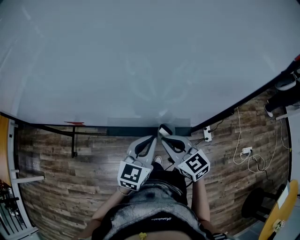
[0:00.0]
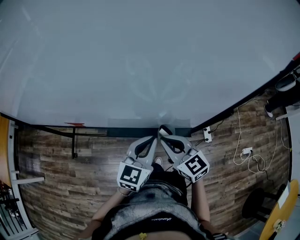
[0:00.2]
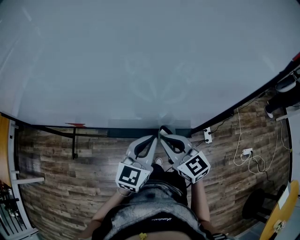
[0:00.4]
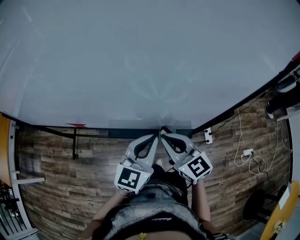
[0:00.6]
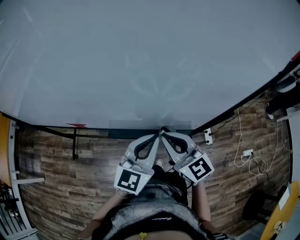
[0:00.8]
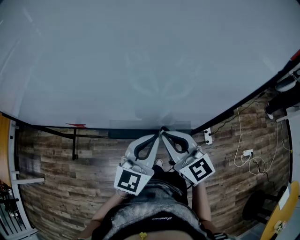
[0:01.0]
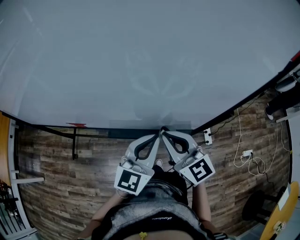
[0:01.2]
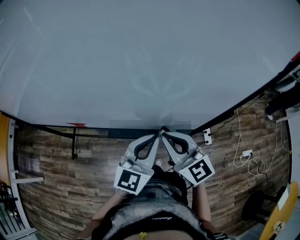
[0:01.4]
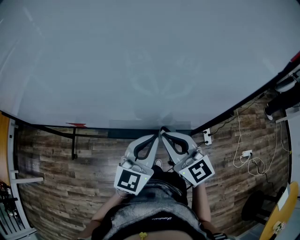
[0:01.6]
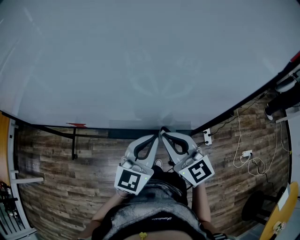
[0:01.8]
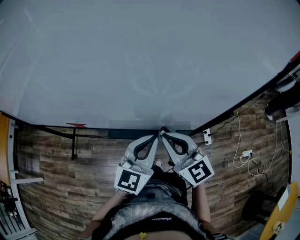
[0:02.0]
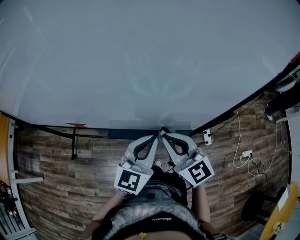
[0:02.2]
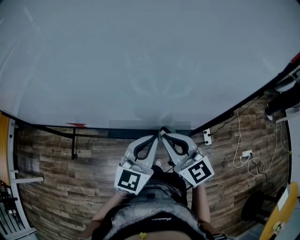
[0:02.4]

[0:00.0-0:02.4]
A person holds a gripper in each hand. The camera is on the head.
0:00.0 to 0:01.2: Both grippers travel together upward, roughly 10 cm.
0:01.2 to 0:02.4: Neither gripper changes place.

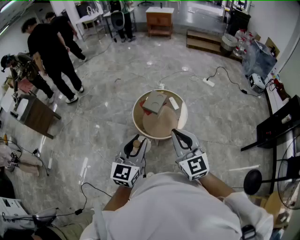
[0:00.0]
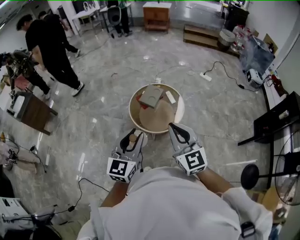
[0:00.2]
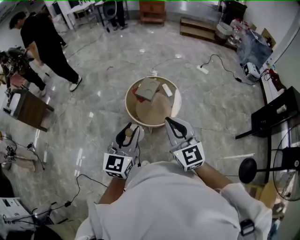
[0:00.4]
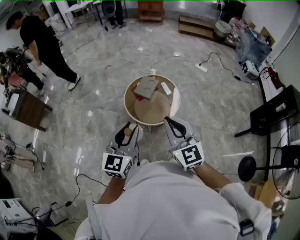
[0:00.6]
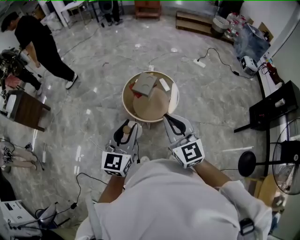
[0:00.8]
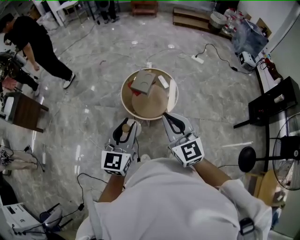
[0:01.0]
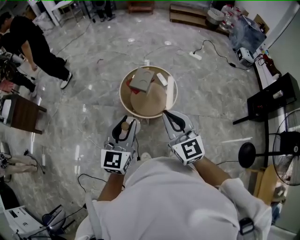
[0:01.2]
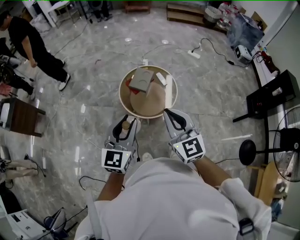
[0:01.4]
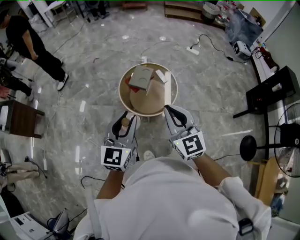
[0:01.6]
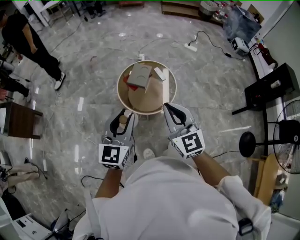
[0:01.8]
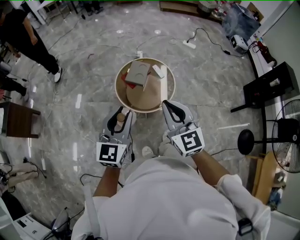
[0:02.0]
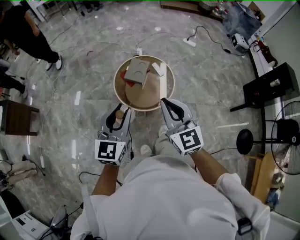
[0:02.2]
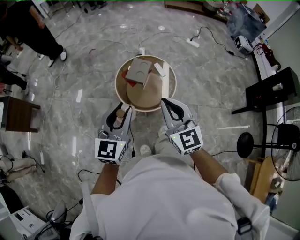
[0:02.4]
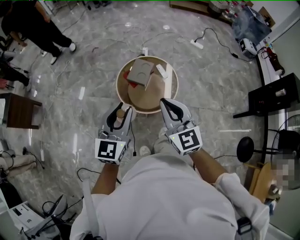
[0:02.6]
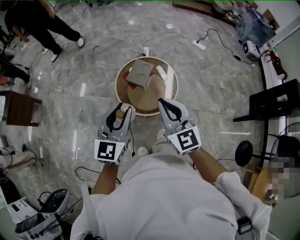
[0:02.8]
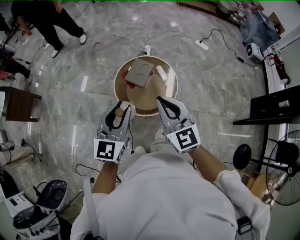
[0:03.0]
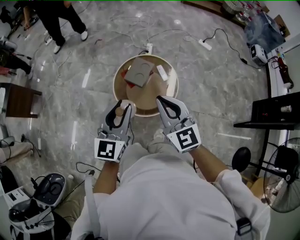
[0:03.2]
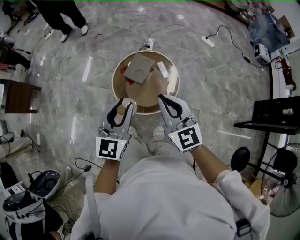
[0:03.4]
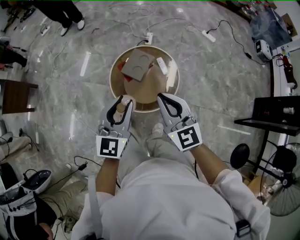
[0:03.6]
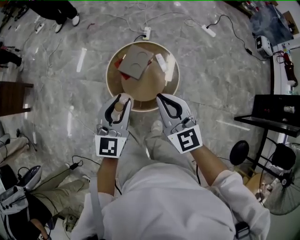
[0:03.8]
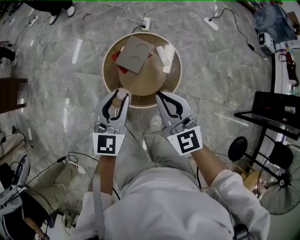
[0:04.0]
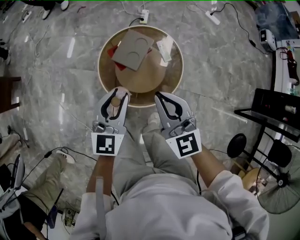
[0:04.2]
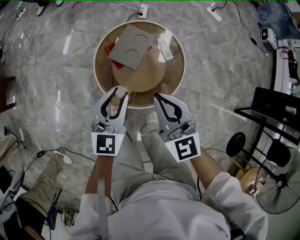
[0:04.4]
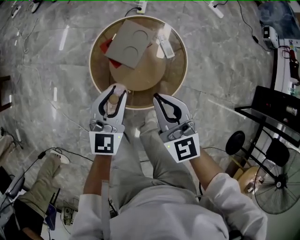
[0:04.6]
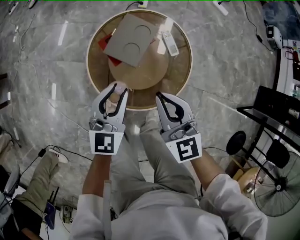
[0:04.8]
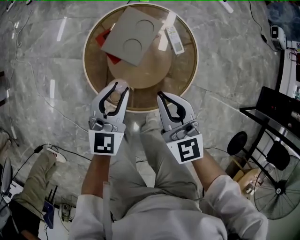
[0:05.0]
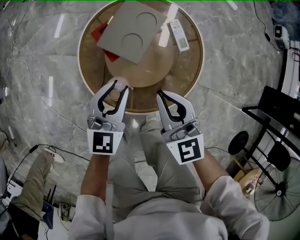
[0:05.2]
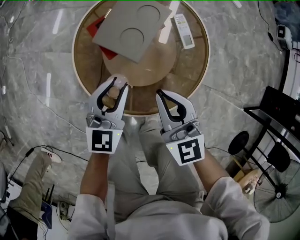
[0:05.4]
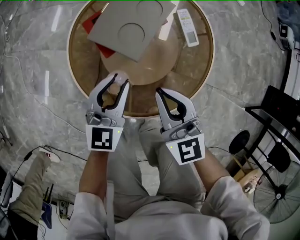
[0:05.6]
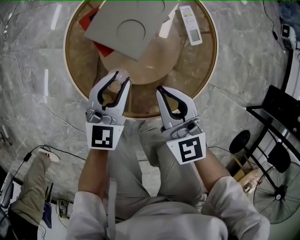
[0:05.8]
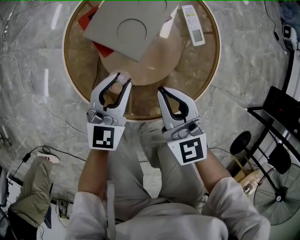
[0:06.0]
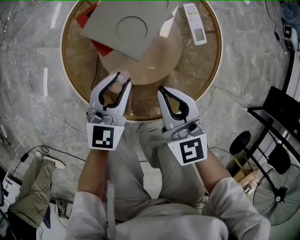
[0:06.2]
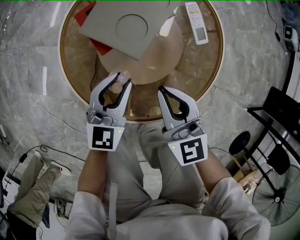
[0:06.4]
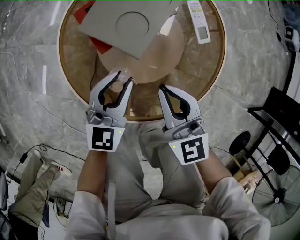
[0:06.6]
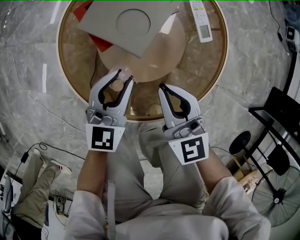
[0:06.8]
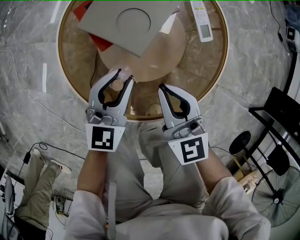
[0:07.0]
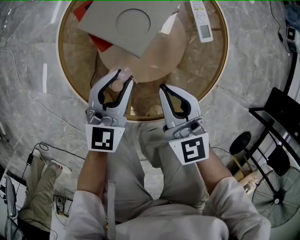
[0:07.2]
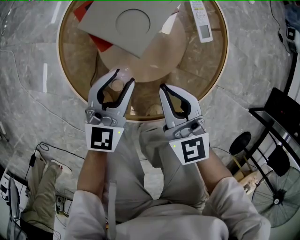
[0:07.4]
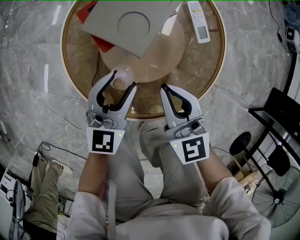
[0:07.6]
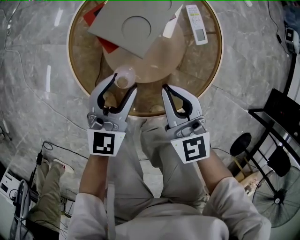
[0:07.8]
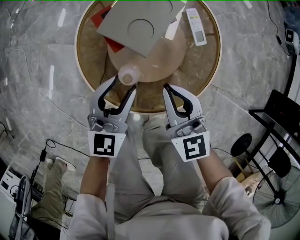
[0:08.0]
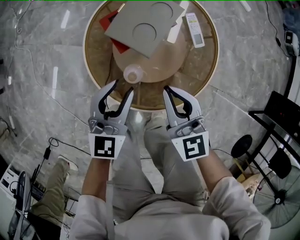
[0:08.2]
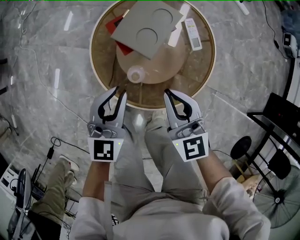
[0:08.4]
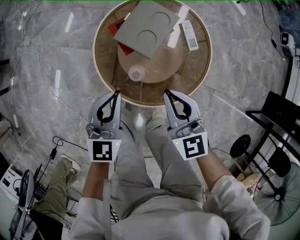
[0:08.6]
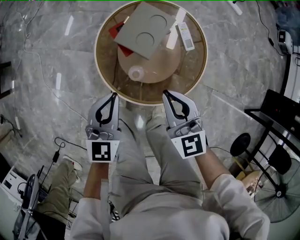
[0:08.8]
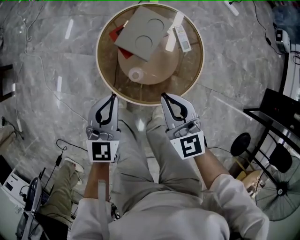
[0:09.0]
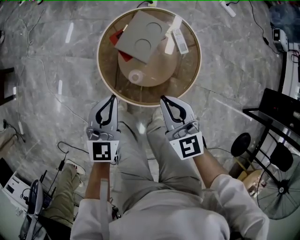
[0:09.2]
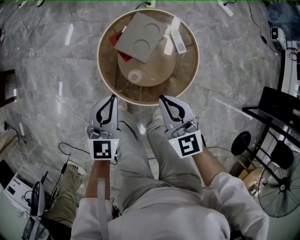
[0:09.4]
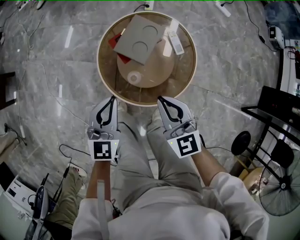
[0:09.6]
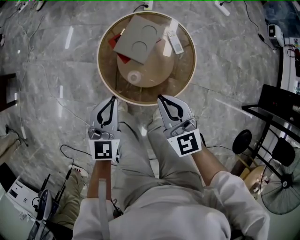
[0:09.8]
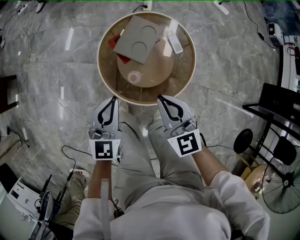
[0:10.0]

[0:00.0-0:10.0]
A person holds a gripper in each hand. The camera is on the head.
0:00.0 to 0:01.4: The left gripper shifts roughly 5 cm forward; the right gripper ends up approximately 5 cm from where it was.
0:01.4 to 0:02.8: The grippers both shift forward by roughly 15 cm.
0:02.8 to 0:04.2: Both grippers move downward and forward, some 30 cm.
0:04.2 to 0:05.8: Both grippers move downward, roughly 35 cm.
0:05.8 to 0:07.2: The grippers make only small movements.
0:07.2 to 0:08.6: The grippers both shift upward by about 20 cm. The left gripper closes up.
0:08.6 to 0:10.0: Both grippers travel together upward, approximately 10 cm.

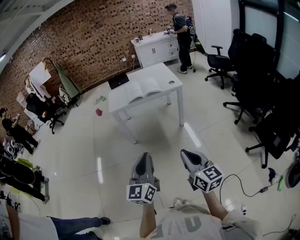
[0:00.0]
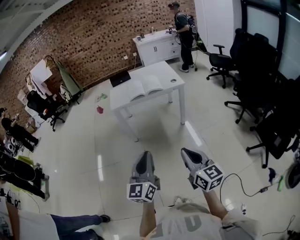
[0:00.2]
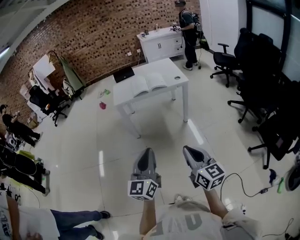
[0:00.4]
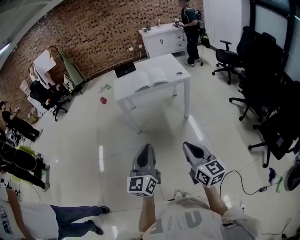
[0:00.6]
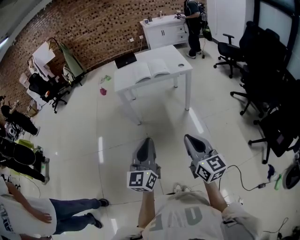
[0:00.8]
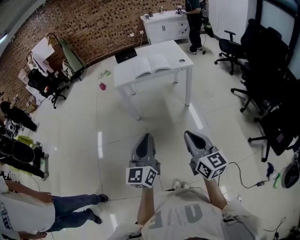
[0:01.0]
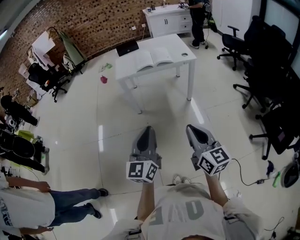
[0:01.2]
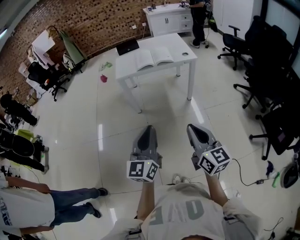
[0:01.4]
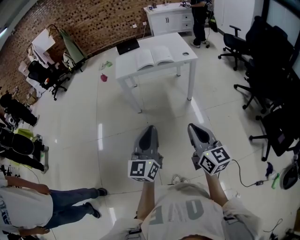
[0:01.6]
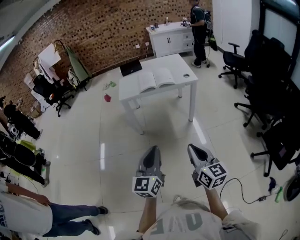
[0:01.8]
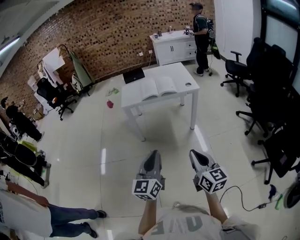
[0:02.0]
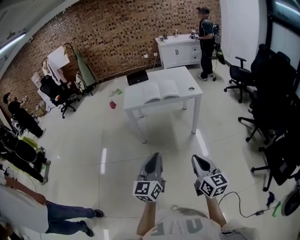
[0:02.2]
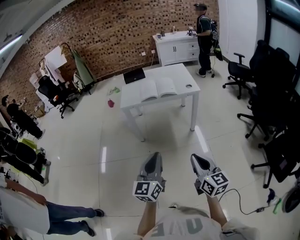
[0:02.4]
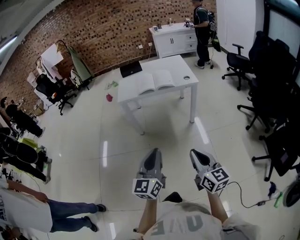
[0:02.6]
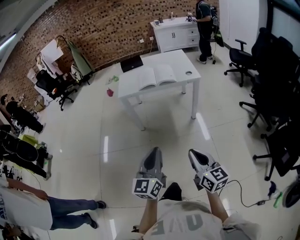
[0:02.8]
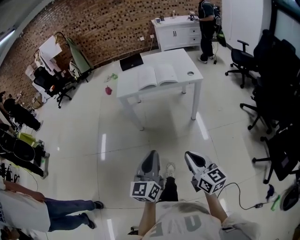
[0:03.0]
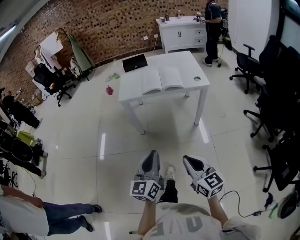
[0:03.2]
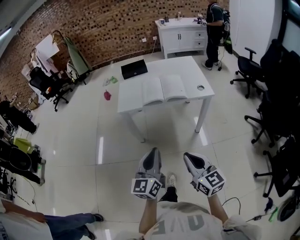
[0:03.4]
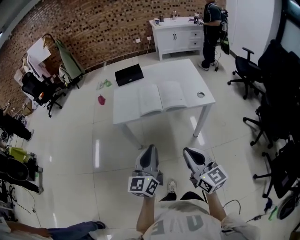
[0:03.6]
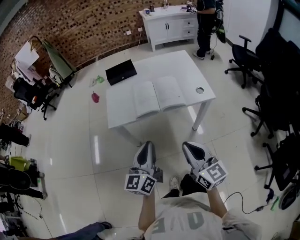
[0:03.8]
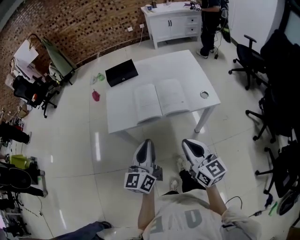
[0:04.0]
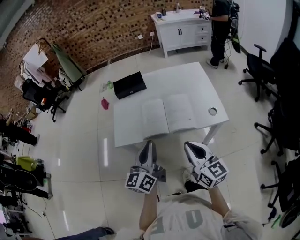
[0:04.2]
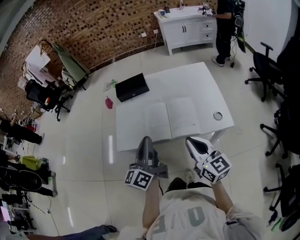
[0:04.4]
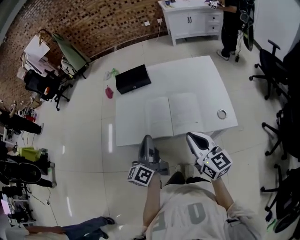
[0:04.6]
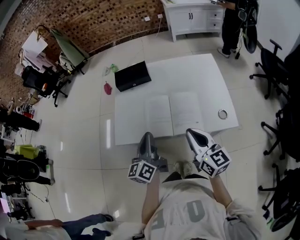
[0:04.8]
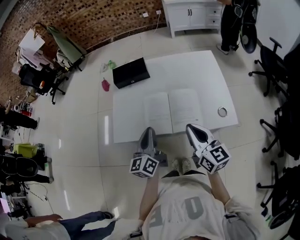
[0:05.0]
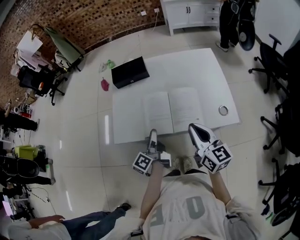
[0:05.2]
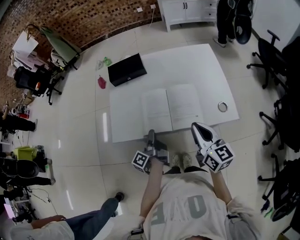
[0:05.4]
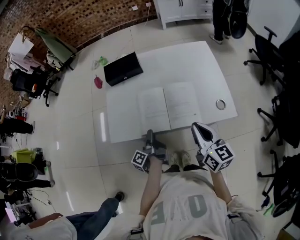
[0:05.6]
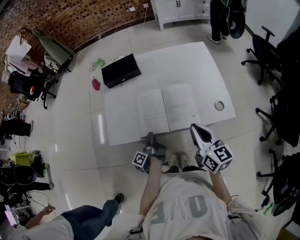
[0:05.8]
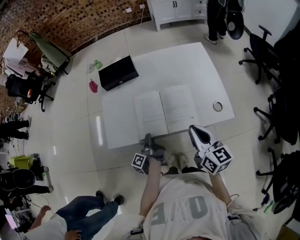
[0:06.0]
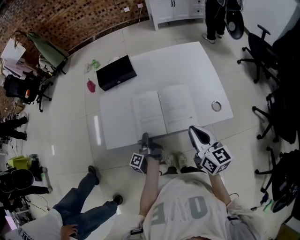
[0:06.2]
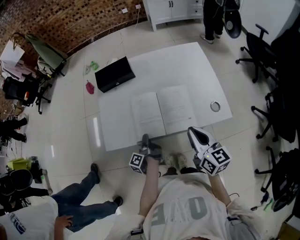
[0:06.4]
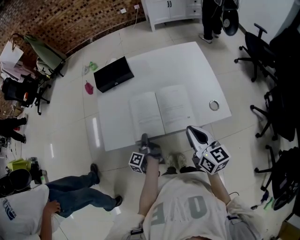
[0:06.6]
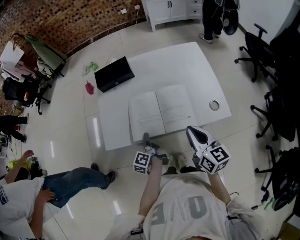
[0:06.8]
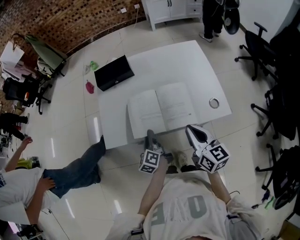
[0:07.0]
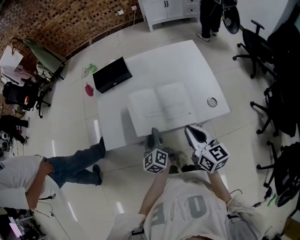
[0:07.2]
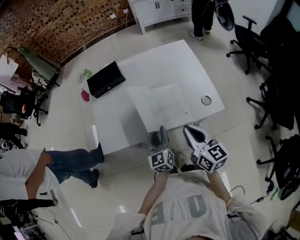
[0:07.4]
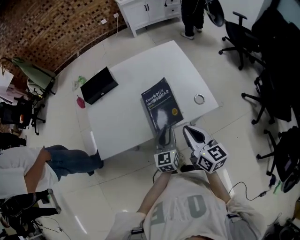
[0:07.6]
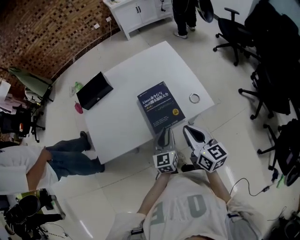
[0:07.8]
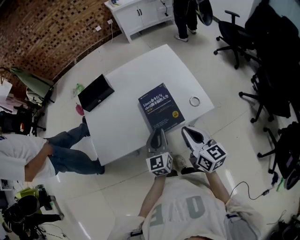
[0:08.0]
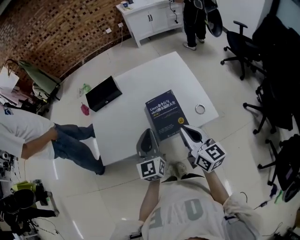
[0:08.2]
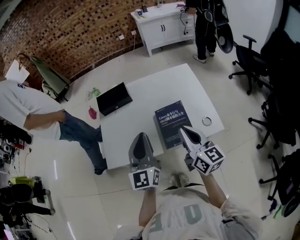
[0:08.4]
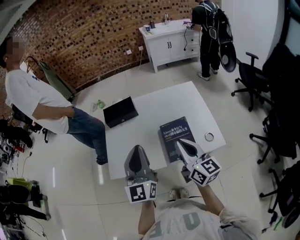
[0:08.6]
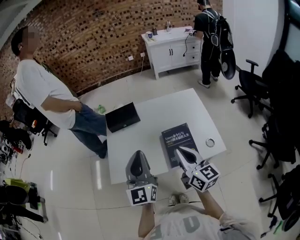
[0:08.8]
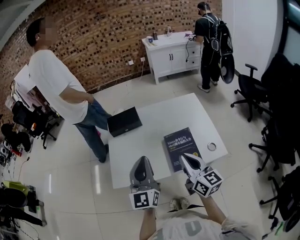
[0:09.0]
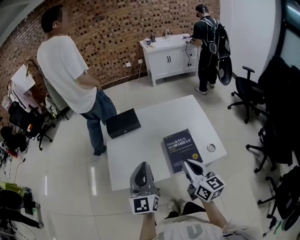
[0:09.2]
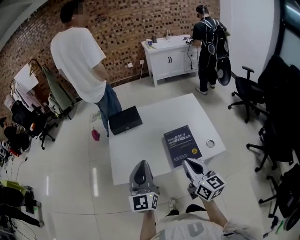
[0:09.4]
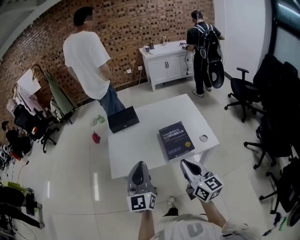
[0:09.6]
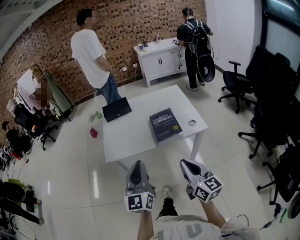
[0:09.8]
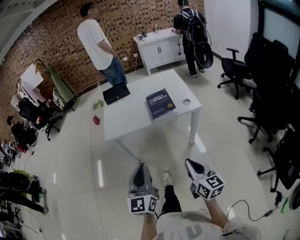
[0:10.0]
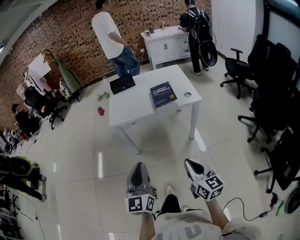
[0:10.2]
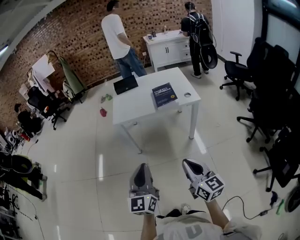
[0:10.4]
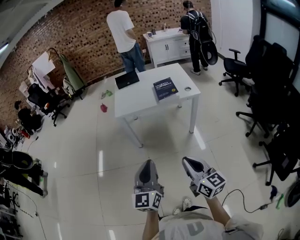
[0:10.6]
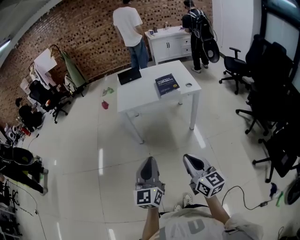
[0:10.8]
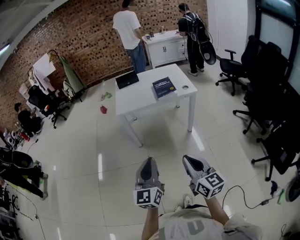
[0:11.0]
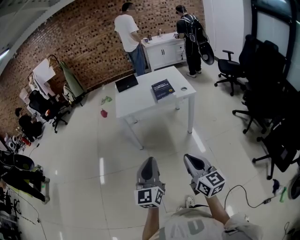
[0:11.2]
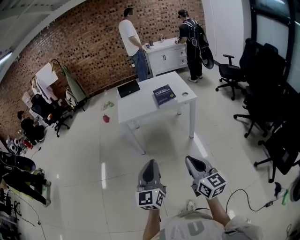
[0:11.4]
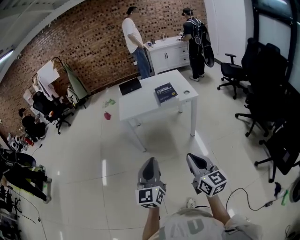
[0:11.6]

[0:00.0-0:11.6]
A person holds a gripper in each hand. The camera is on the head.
0:00.0 to 0:01.4: The grippers make only small movements.
0:01.4 to 0:02.8: The right gripper heads downward and to the right, covering approximately 10 cm, while the left gripper travels to the right by about 5 cm.
0:02.8 to 0:04.4: Both grippers are carried forward, about 60 cm. The left gripper changes its angle by about 30 degrees.
0:04.4 to 0:05.8: The right gripper heads forward, covering approximately 5 cm. Meanwhile the left gripper is displaced downward by roughly 30 cm, twists roughly 60 degrees counterclockwise, seen from behind, and opens up.
0:05.8 to 0:07.2: The left gripper shifts about 10 cm upward, twists about 60 degrees clockwise, seen from behind, and closes its fingers.
0:07.2 to 0:08.8: The right gripper shifts about 10 cm upward, and travels to the right and back again, some 5 cm each way, while the left gripper travels upward by about 25 cm, and turns by approximately 40 degrees.
0:08.8 to 0:10.2: The pair of grippers is taken backward, some 50 cm.
0:10.2 to 0:11.6: The left gripper heads backward, covering about 15 cm. Meanwhile the right gripper heads backward and upward, covering roughly 15 cm.
